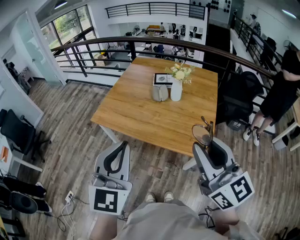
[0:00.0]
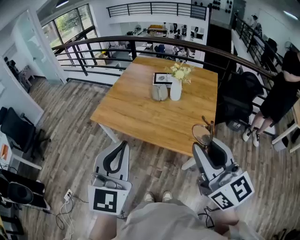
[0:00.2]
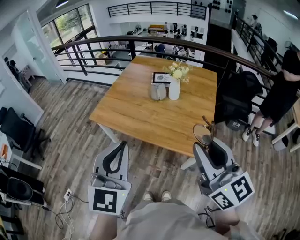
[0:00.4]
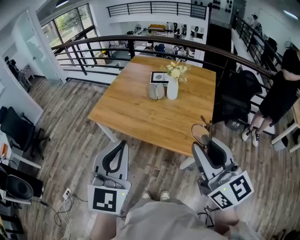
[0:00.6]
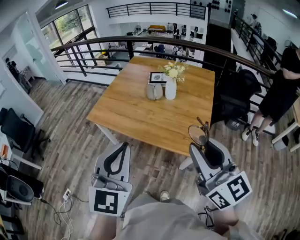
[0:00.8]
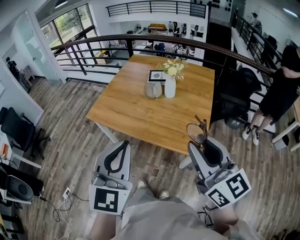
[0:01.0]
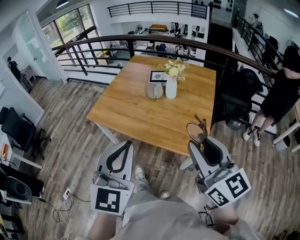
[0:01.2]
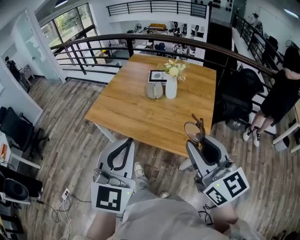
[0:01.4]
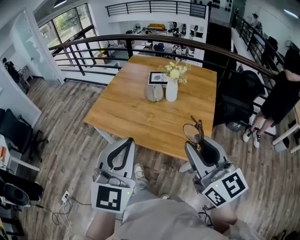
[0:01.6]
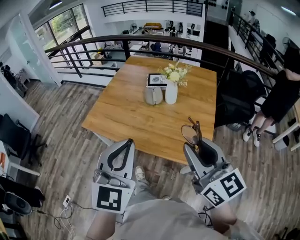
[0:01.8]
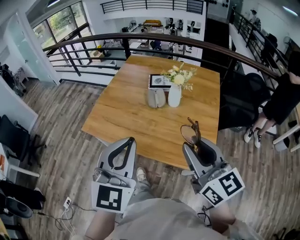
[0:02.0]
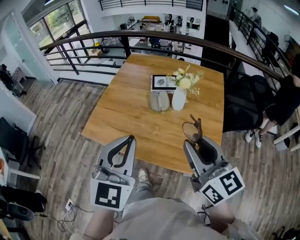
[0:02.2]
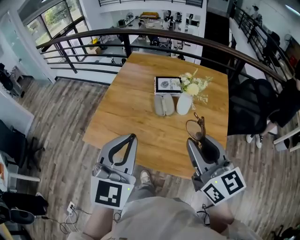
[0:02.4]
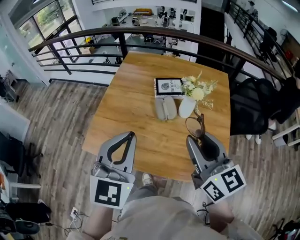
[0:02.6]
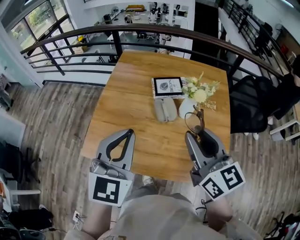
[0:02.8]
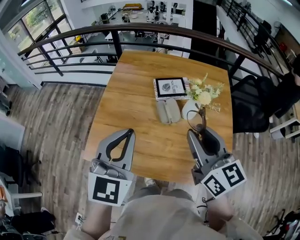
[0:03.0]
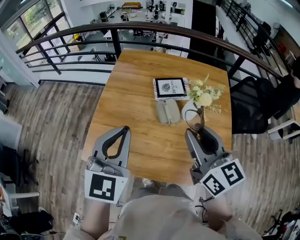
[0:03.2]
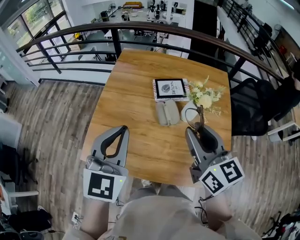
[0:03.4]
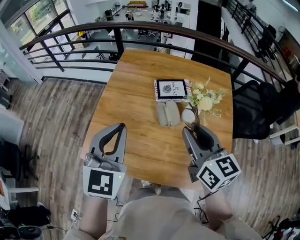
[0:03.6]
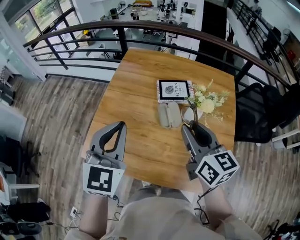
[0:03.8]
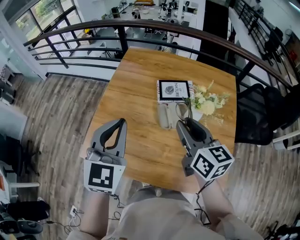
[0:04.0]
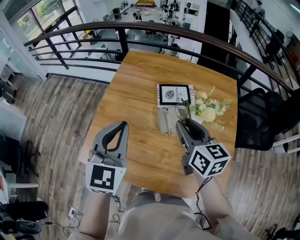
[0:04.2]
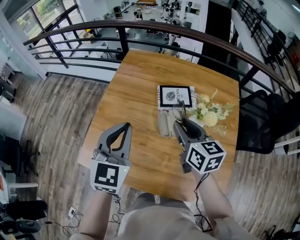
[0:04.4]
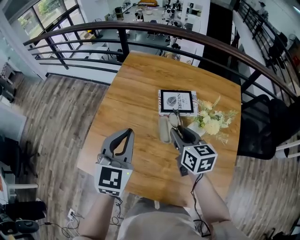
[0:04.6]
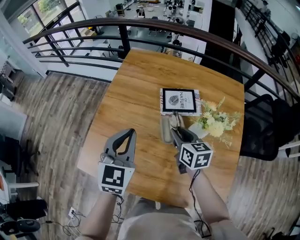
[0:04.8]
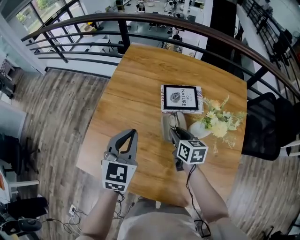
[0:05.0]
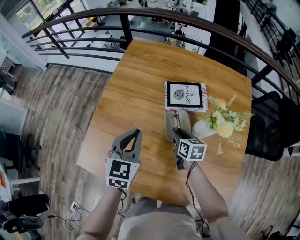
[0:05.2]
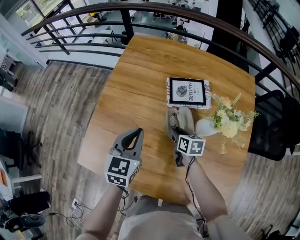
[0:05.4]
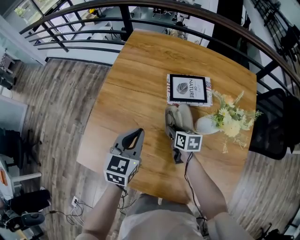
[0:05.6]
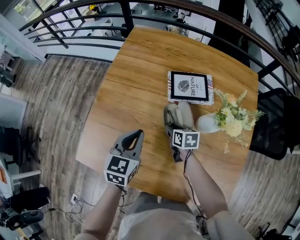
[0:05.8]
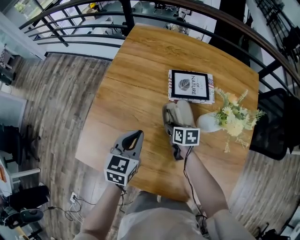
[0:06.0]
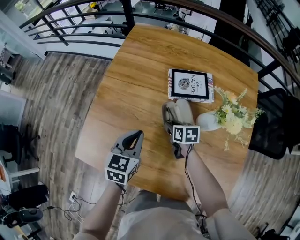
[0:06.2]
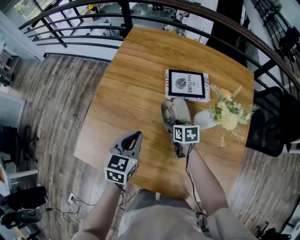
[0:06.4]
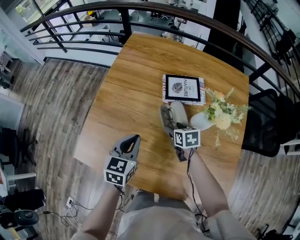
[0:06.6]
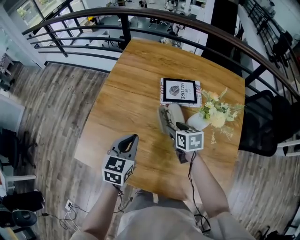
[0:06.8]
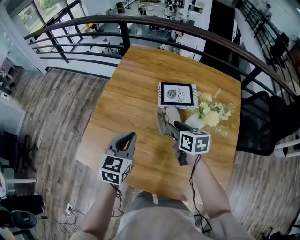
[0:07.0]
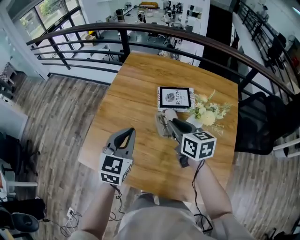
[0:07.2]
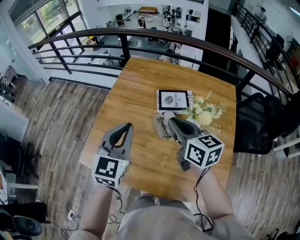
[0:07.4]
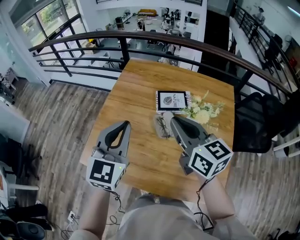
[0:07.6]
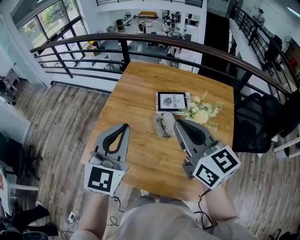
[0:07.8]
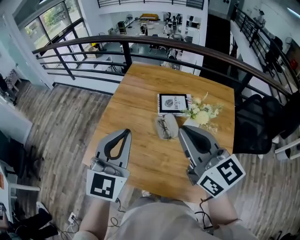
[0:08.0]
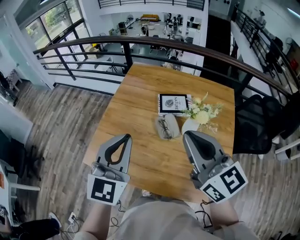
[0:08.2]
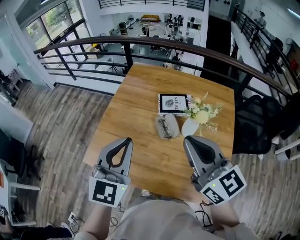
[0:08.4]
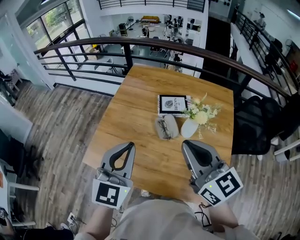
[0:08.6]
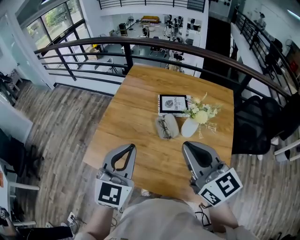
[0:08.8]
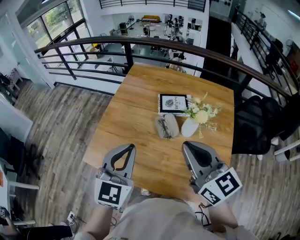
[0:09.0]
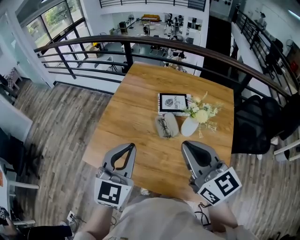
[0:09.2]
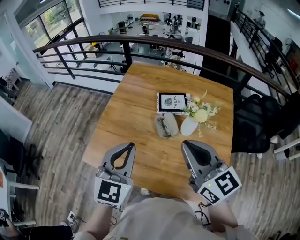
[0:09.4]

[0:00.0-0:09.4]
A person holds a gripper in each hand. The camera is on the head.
0:00.0 to 0:01.6: The right gripper goes approximately 5 cm downward. The left gripper heads to the right, covering about 10 cm.
0:01.6 to 0:03.2: Both grippers are carried forward and to the left, some 40 cm.
0:03.2 to 0:04.8: The left gripper travels forward and downward by some 20 cm; the right gripper is displaced downward and forward by approximately 30 cm, and turns by some 30 degrees.
0:04.8 to 0:06.2: The two grippers go approximately 20 cm downward. The left gripper turns by roughly 20 degrees; the right gripper changes its angle by approximately 30 degrees.
0:06.2 to 0:07.8: The left gripper goes approximately 30 cm upward, and changes its angle by roughly 30 degrees, while the right gripper moves upward, some 50 cm, points its fingers about 50 degrees further upward, and closes.
0:07.8 to 0:09.4: Both grippers travel together backward, approximately 5 cm.

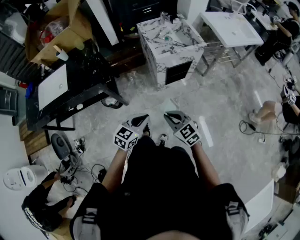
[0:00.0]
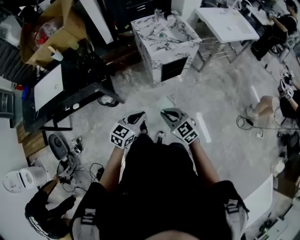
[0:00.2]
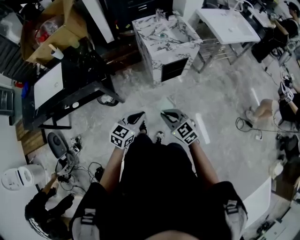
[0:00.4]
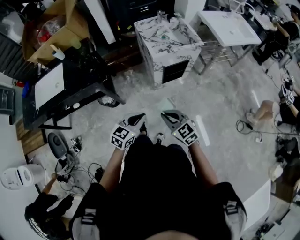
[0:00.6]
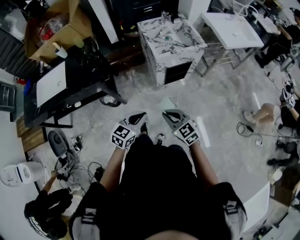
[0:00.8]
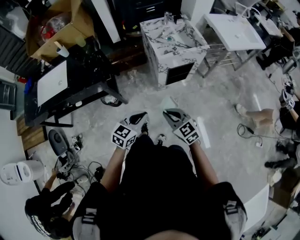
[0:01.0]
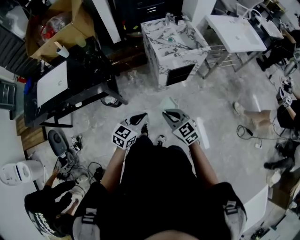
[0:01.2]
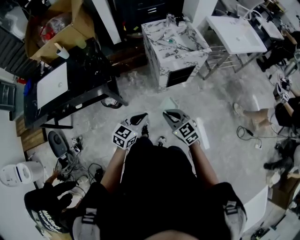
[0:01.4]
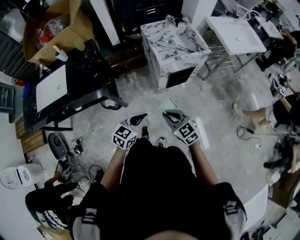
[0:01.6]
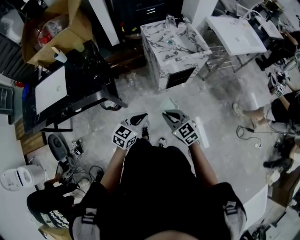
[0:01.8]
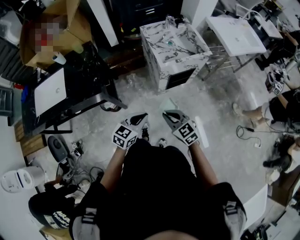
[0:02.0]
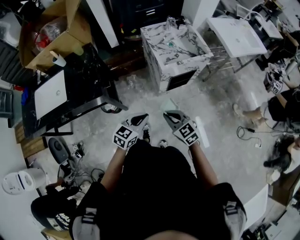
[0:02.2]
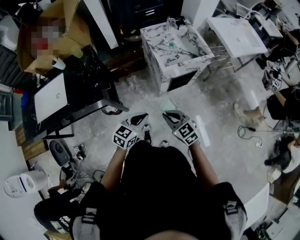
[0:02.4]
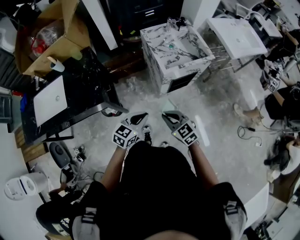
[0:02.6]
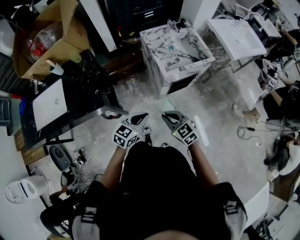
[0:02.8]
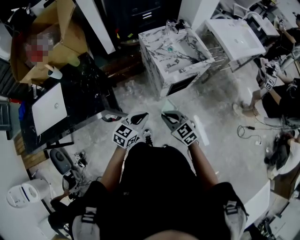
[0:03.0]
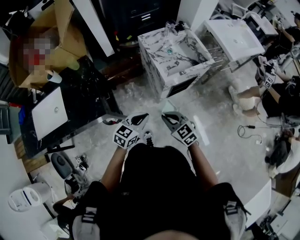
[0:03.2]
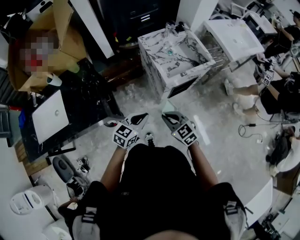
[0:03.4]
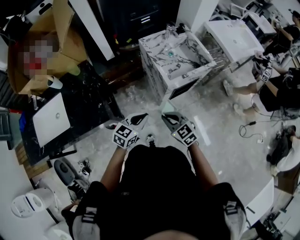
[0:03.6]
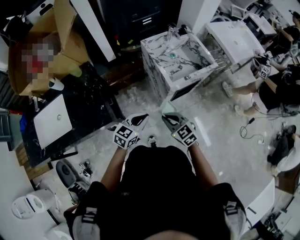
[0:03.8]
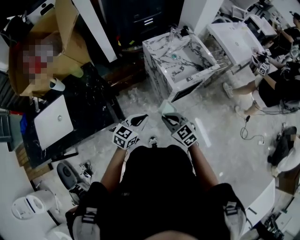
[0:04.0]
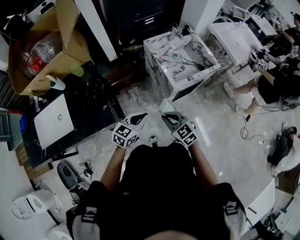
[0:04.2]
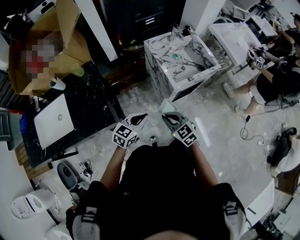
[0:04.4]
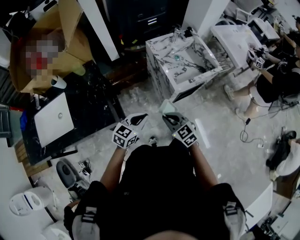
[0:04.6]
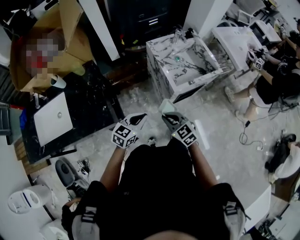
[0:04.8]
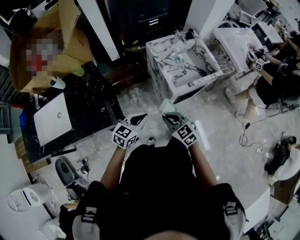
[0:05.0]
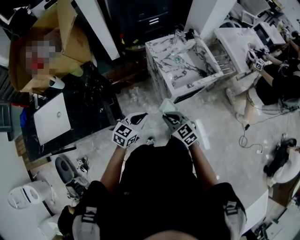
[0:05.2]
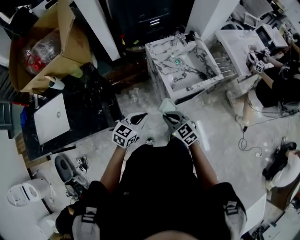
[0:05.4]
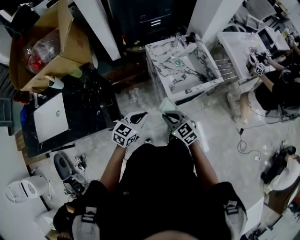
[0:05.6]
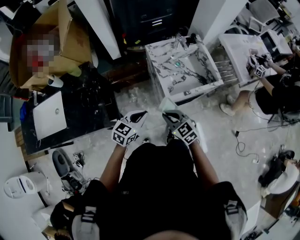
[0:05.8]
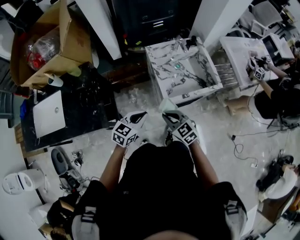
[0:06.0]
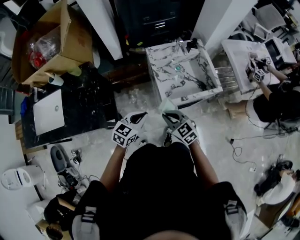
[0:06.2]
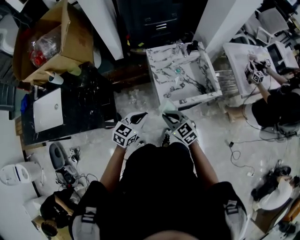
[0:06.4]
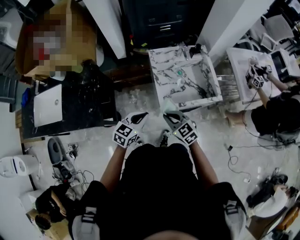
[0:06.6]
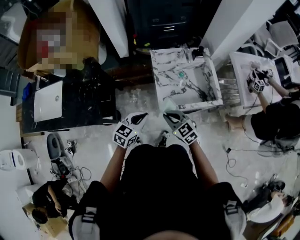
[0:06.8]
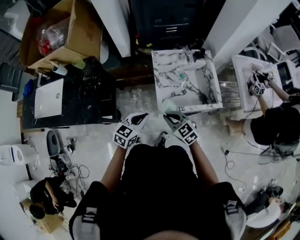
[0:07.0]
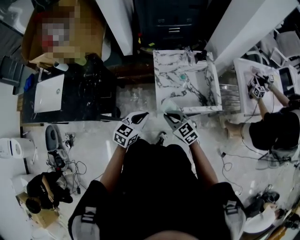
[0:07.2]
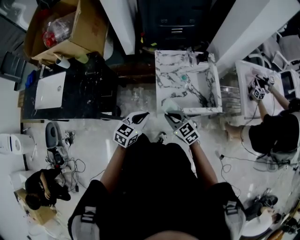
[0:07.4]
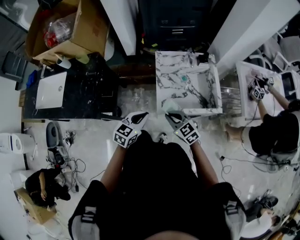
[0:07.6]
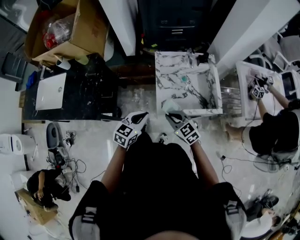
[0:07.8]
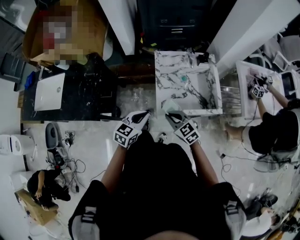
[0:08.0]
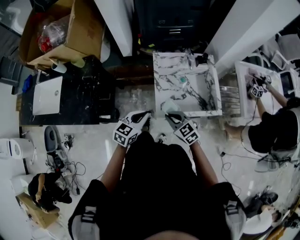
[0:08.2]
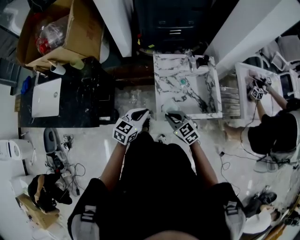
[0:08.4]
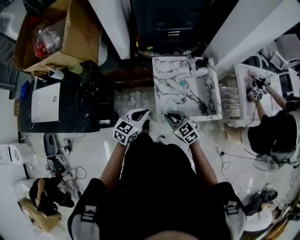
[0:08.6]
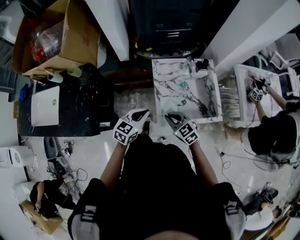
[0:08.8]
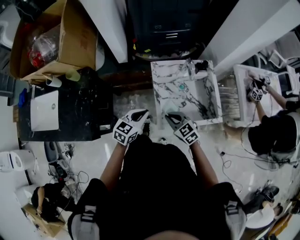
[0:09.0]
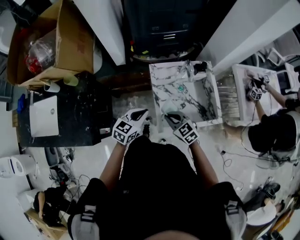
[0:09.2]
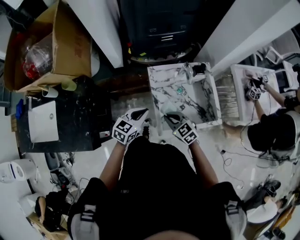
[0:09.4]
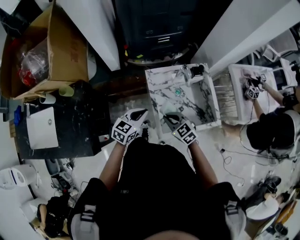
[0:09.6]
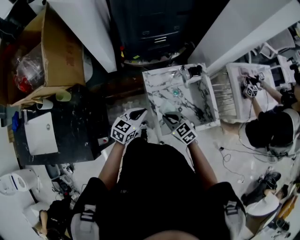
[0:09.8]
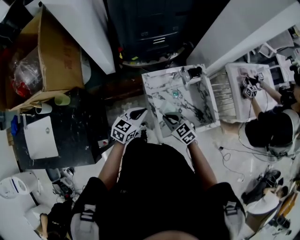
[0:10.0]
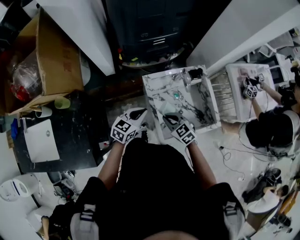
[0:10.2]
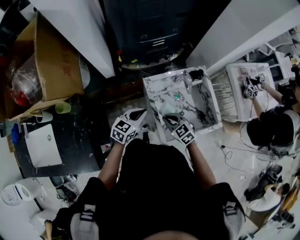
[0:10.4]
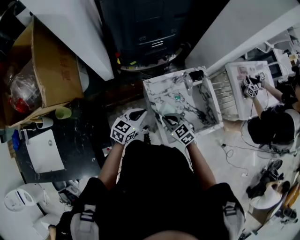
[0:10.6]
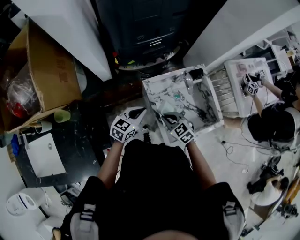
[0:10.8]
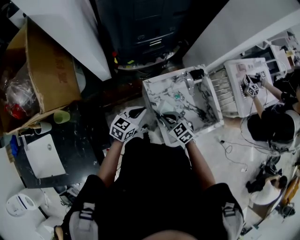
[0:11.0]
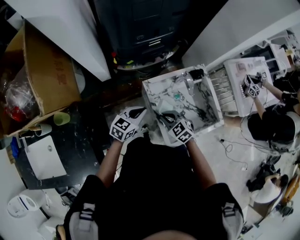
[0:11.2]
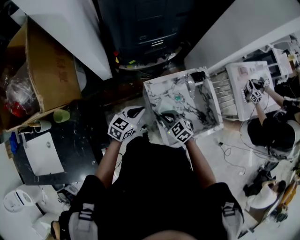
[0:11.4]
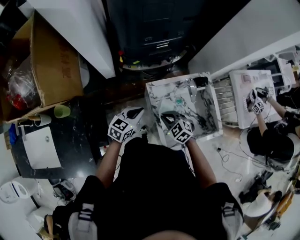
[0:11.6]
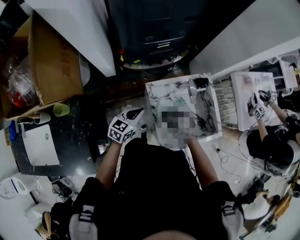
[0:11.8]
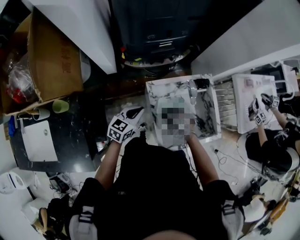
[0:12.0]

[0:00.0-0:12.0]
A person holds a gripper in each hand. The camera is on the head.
0:00.0 to 0:01.6: The two grippers go some 5 cm forward.
0:01.6 to 0:03.0: The right gripper goes about 15 cm forward and to the left. Meanwhile the left gripper goes some 15 cm forward.
0:03.0 to 0:04.4: Both grippers move to the left and forward, some 10 cm.
0:04.4 to 0:06.0: The two grippers go some 15 cm forward and to the right.
0:06.0 to 0:07.6: The right gripper moves to the right and forward, some 10 cm, while the left gripper goes about 10 cm to the right.
0:07.6 to 0:09.0: The two grippers go about 10 cm forward.
0:09.0 to 0:10.4: Both grippers travel together forward, roughly 10 cm.
0:10.4 to 0:12.0: The left gripper changes place by approximately 5 cm; the right gripper travels forward and downward by about 10 cm, and swivels some 30 degrees.

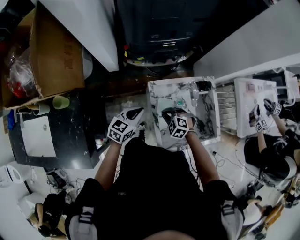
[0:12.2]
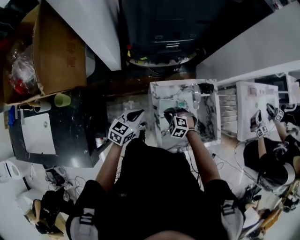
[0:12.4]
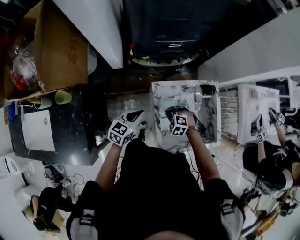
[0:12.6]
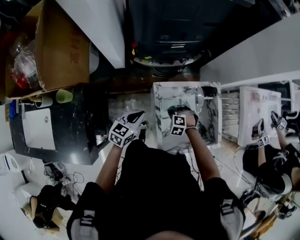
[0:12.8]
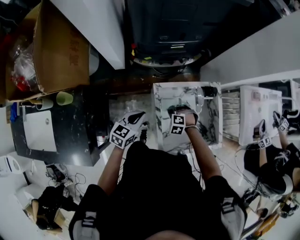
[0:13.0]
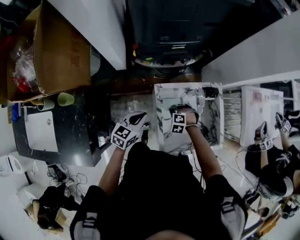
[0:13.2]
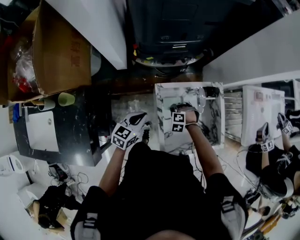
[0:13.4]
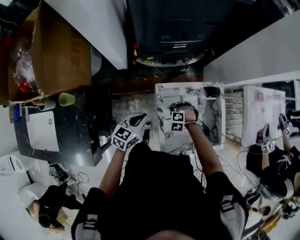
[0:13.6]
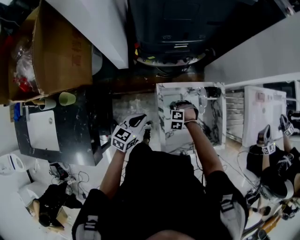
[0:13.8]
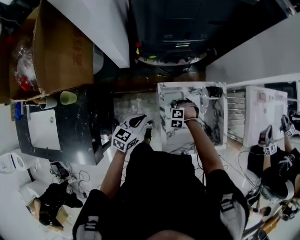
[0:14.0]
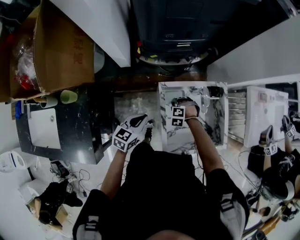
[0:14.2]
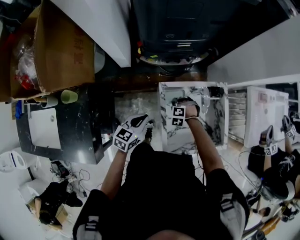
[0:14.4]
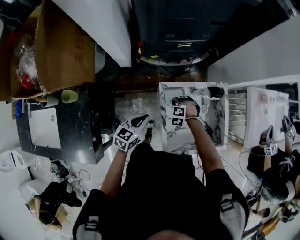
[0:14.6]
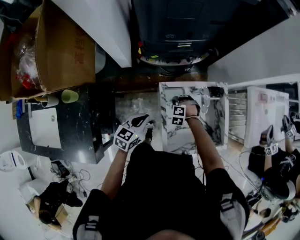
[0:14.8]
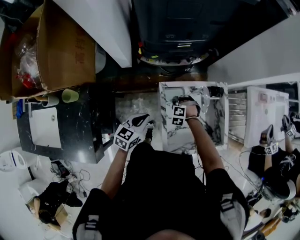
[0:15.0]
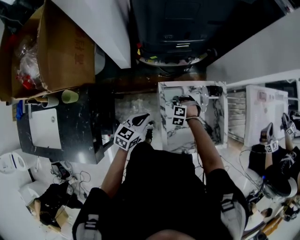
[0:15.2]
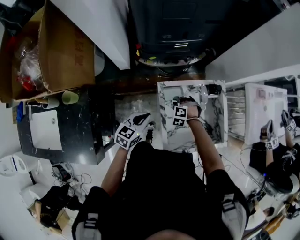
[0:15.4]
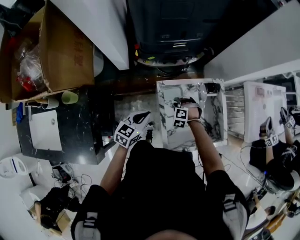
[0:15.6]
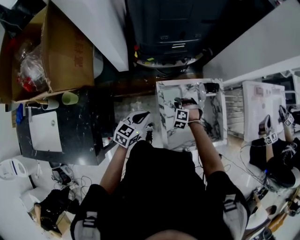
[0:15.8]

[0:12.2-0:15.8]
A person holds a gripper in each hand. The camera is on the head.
0:12.2 to 0:14.0: The right gripper goes approximately 10 cm downward, and swivels roughly 30 degrees.
0:14.0 to 0:15.8: The grippers move only a little.
